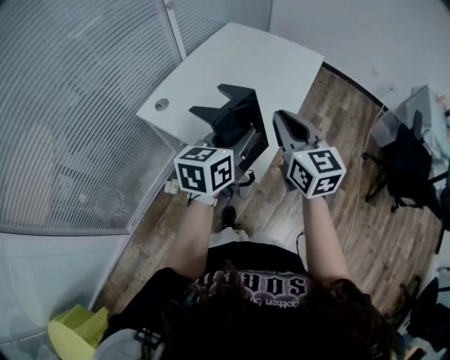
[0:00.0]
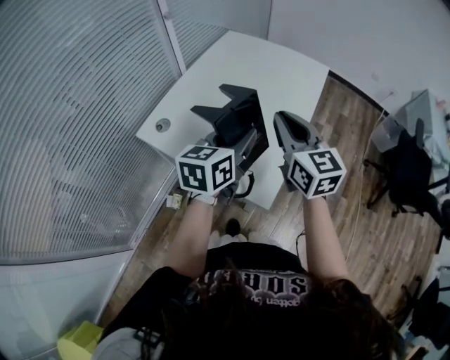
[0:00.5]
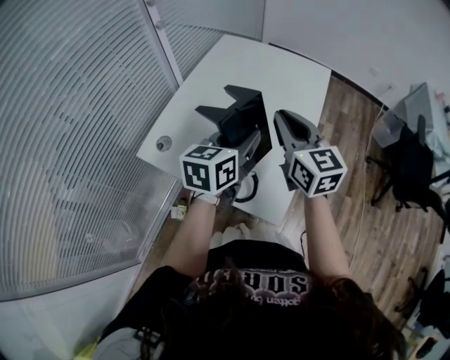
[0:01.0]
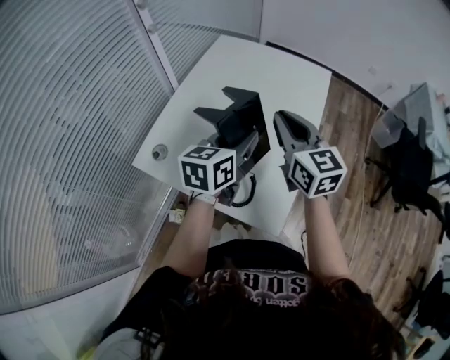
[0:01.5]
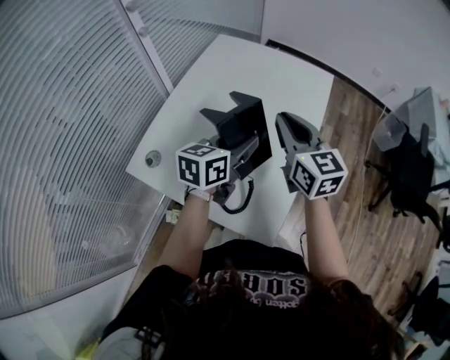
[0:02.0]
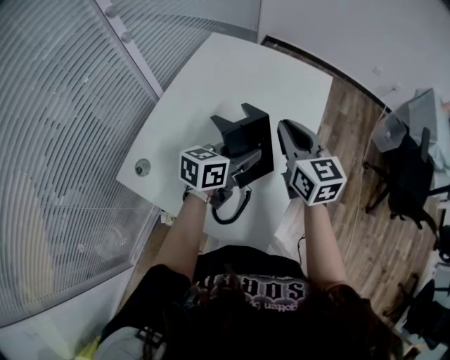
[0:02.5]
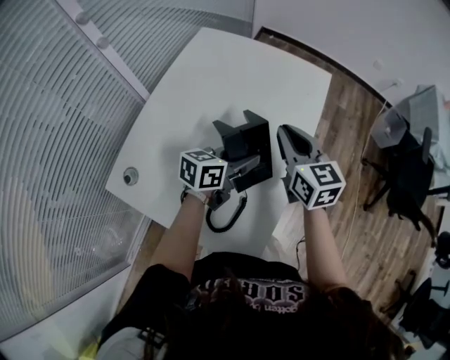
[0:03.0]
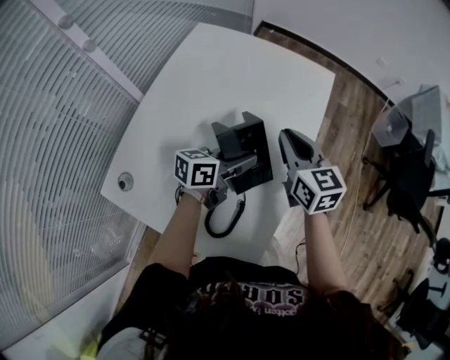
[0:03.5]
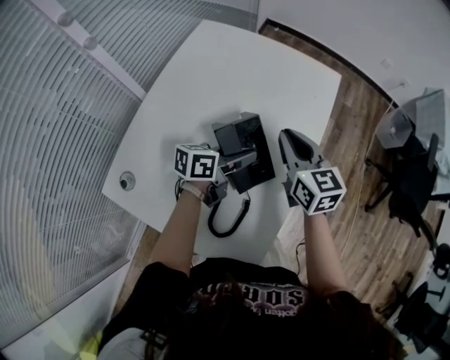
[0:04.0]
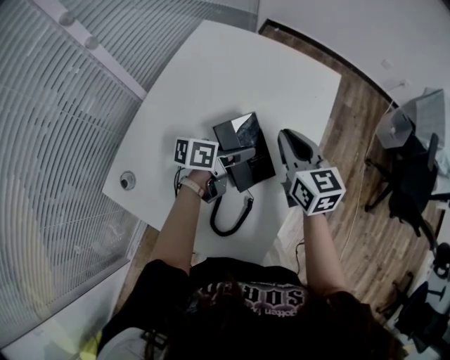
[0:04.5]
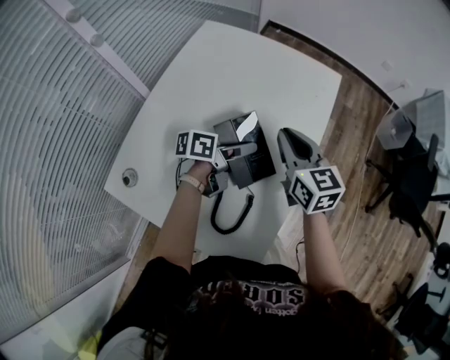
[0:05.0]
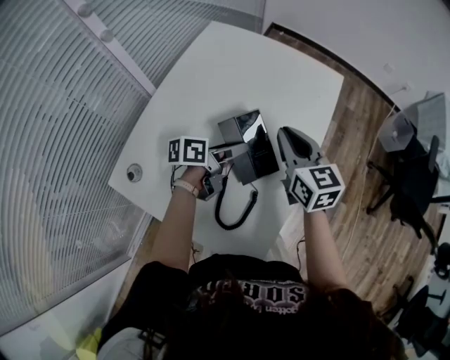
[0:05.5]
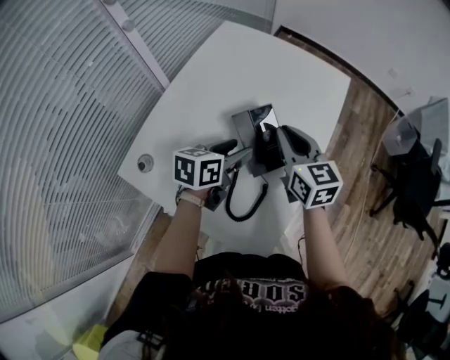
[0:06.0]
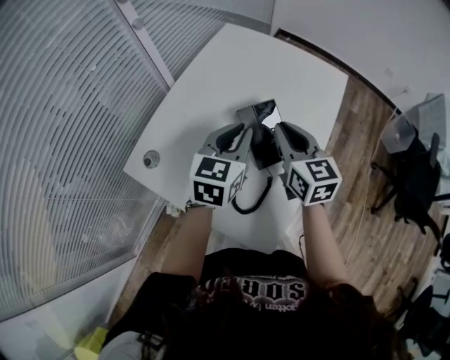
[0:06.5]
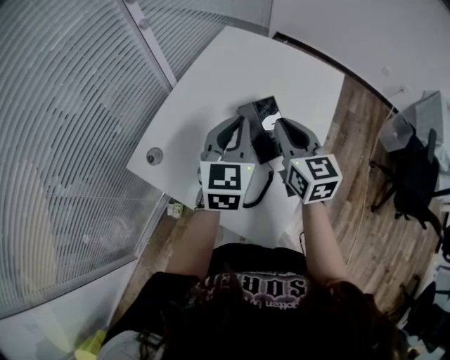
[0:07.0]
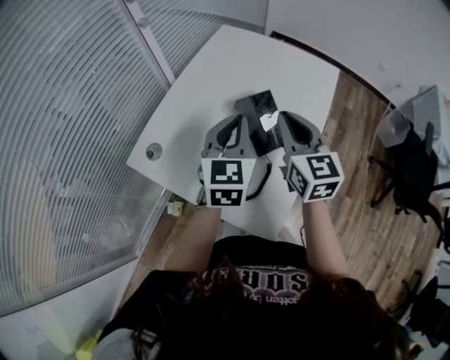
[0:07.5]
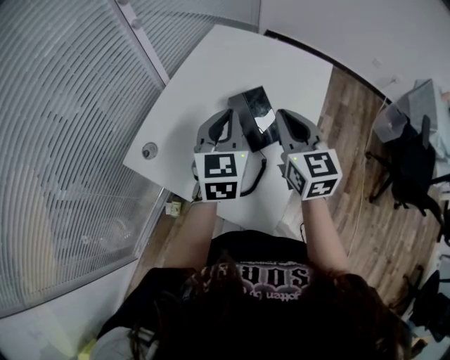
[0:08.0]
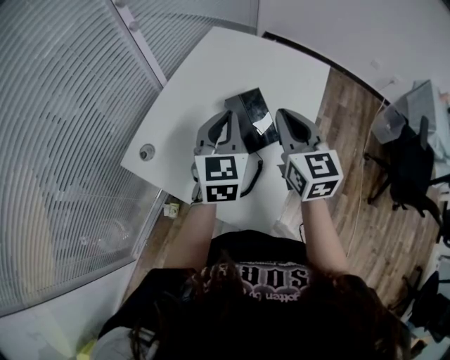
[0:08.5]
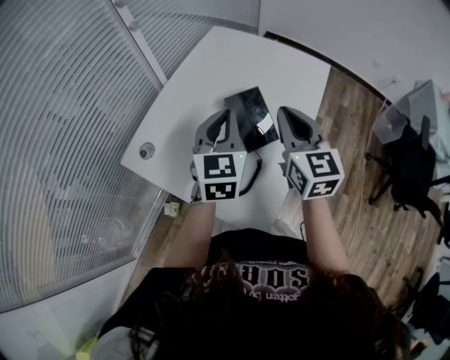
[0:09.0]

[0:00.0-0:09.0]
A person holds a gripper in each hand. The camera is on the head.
0.0 to 2.0 s: Both grippers move forward, about 25 cm.
2.0 to 4.5 s: Both grippers travel together downward and forward, roughly 15 cm. The left gripper changes its angle by about 40 degrees.
4.5 to 7.0 s: The left gripper goes roughly 20 cm upward, rotates approximately 70 degrees, and closes up, while the right gripper moves roughly 15 cm.
7.0 to 9.0 s: The right gripper shifts by approximately 5 cm.

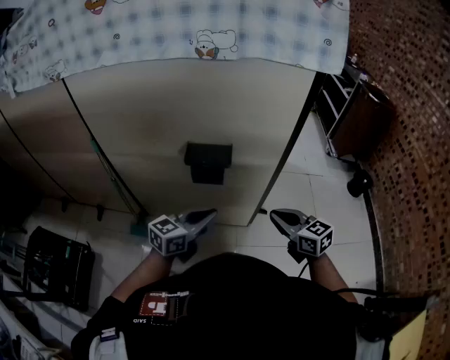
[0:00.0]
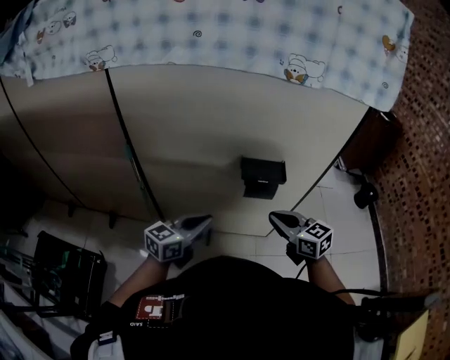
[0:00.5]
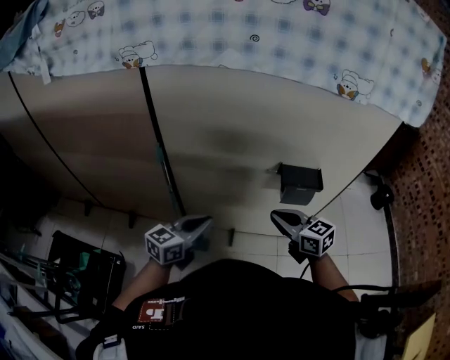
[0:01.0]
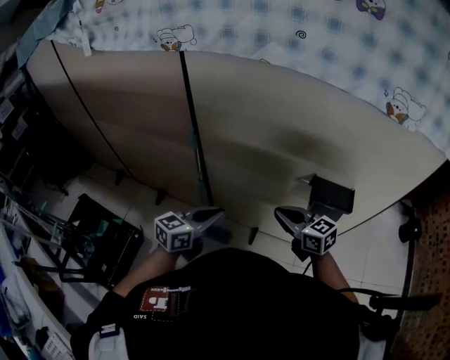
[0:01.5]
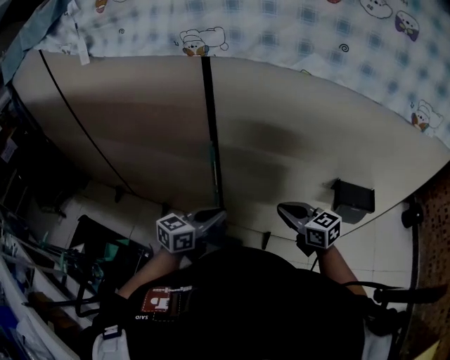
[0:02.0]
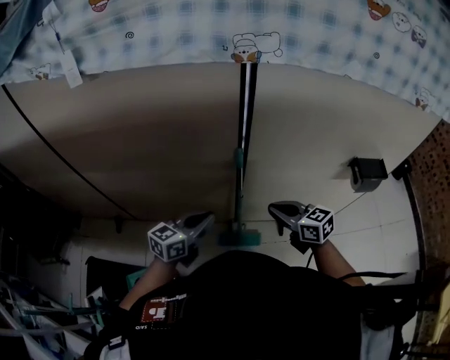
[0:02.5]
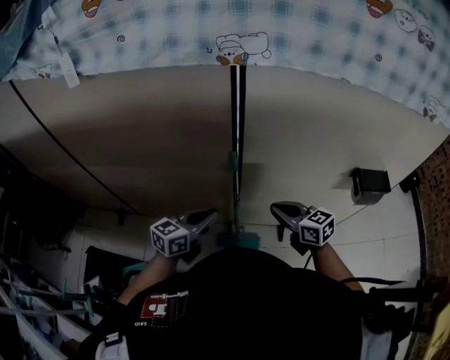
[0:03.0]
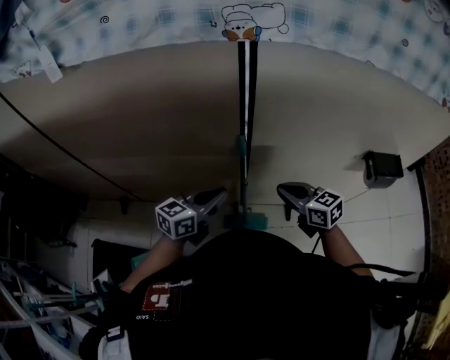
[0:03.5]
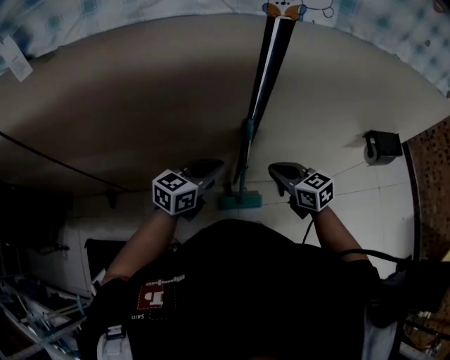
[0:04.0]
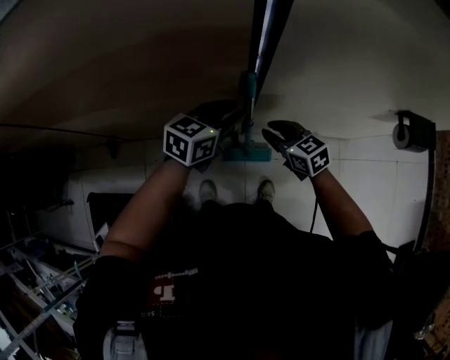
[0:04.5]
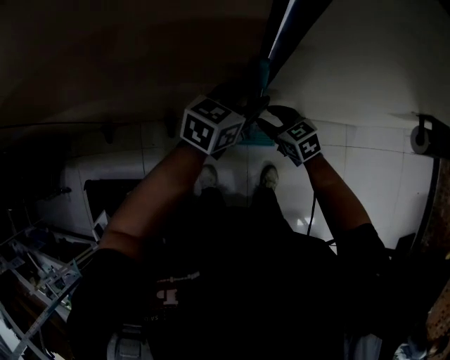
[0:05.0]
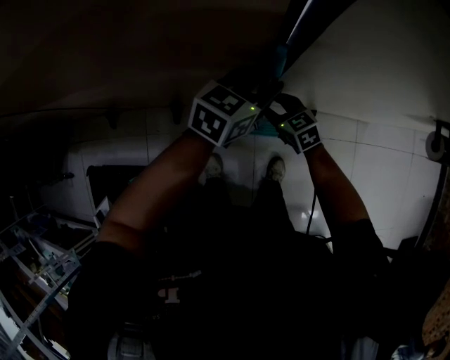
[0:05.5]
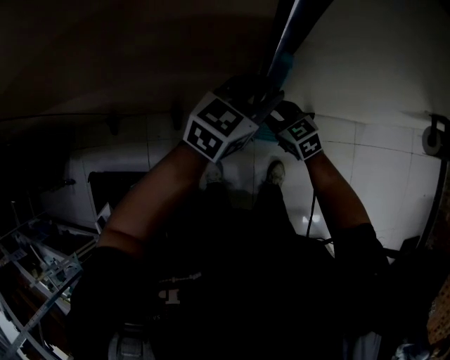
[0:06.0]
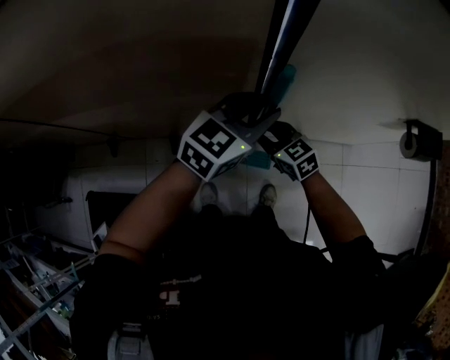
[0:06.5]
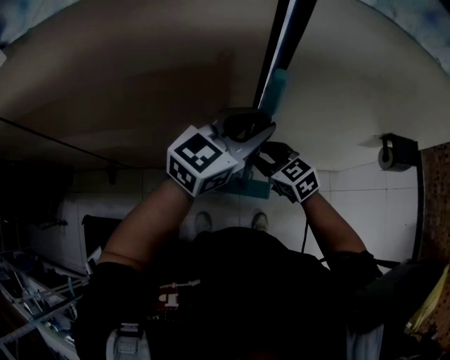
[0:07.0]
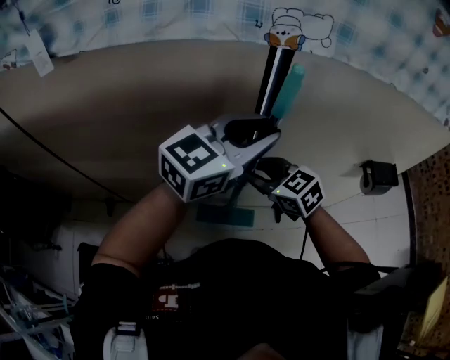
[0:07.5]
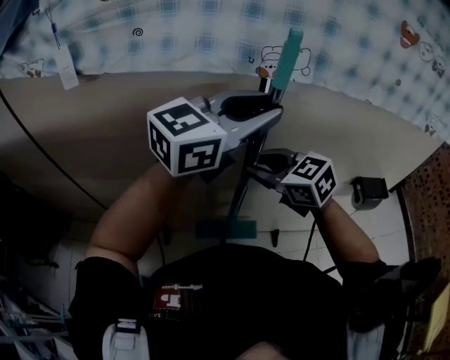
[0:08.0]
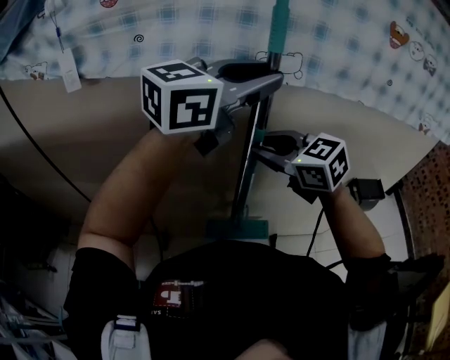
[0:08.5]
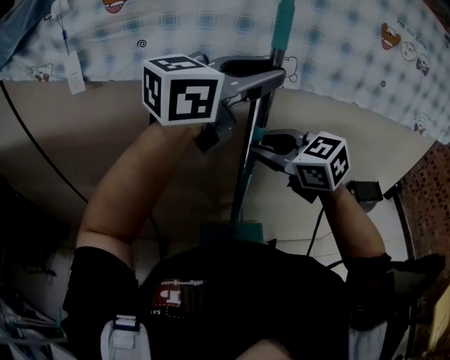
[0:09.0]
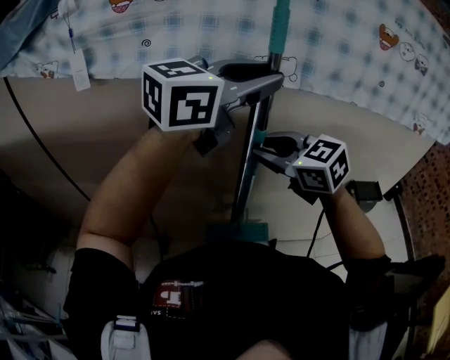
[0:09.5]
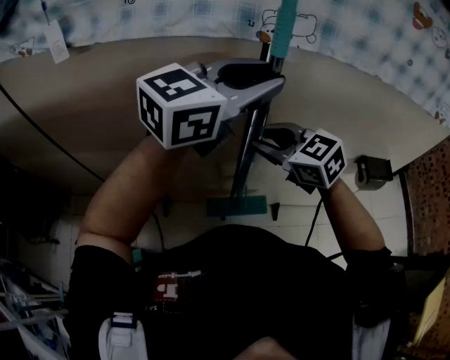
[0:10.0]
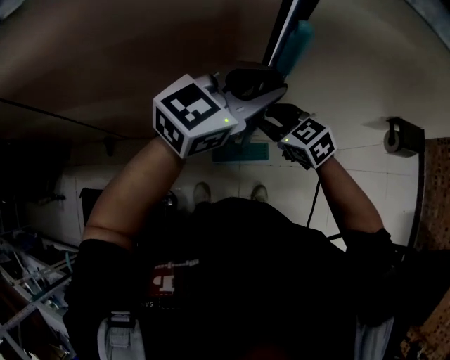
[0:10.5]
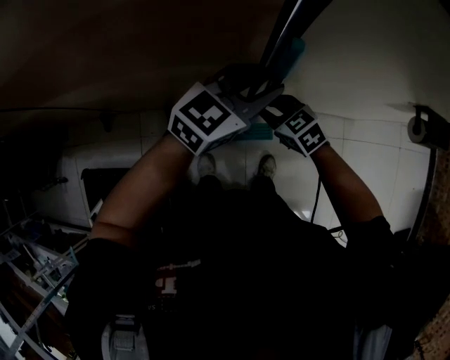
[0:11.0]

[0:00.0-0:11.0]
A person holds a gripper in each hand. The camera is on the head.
0.0 to 2.0 s: Both grippers are carried to the left, some 50 cm.
2.0 to 3.5 s: The right gripper goes some 15 cm to the left, while the left gripper heads to the left and forward, covering roughly 20 cm.
3.5 to 5.5 s: The left gripper goes about 25 cm forward, downward and to the right, and opens. The right gripper shifts roughly 30 cm downward, and opens its fingers.
5.5 to 7.5 s: The two grippers go approximately 35 cm upward. The left gripper turns by some 30 degrees.
7.5 to 9.0 s: Both grippers move upward, approximately 20 cm.
9.0 to 11.0 s: The two grippers go roughly 50 cm downward. The left gripper rotates approximately 20 degrees. Meanwhile the right gripper changes its angle by approximately 30 degrees.

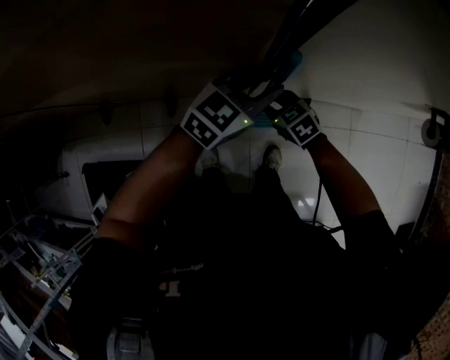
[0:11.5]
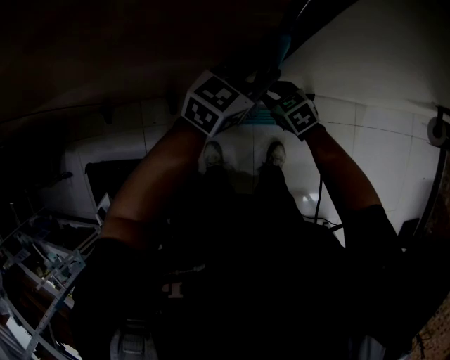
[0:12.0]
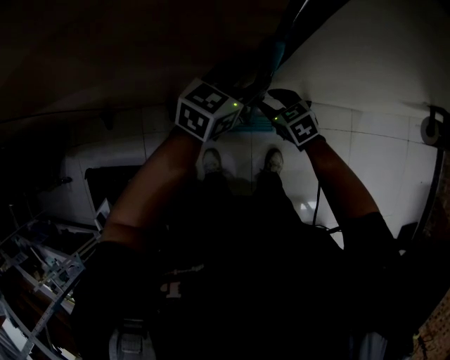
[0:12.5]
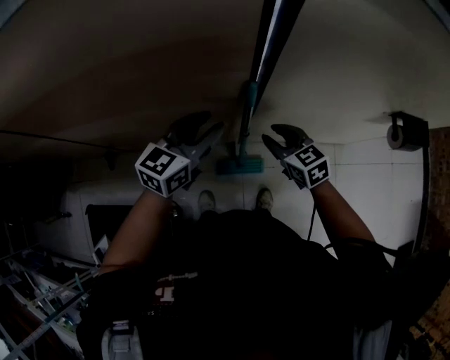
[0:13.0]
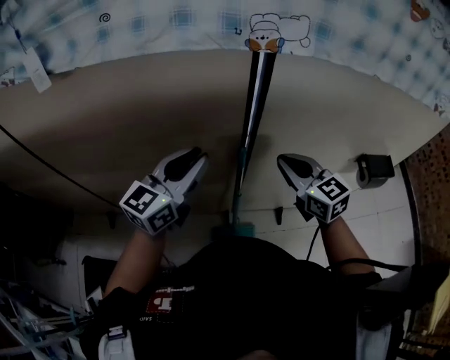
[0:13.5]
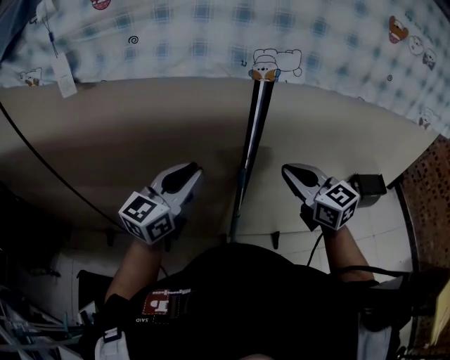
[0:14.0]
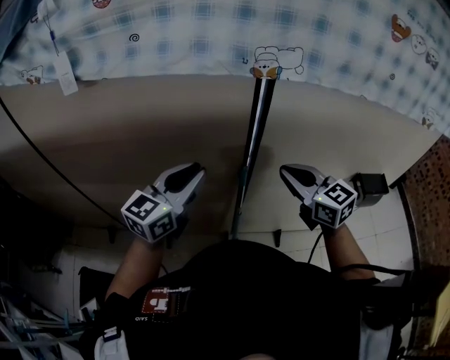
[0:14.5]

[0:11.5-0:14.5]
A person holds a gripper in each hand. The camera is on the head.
11.5 to 13.0 s: The left gripper is displaced to the left and upward by about 15 cm, and turns by some 20 degrees, while the right gripper is displaced upward by some 15 cm, and swivels roughly 20 degrees.
13.0 to 14.5 s: The grippers both shift upward by about 25 cm. The right gripper turns by about 20 degrees, and closes.

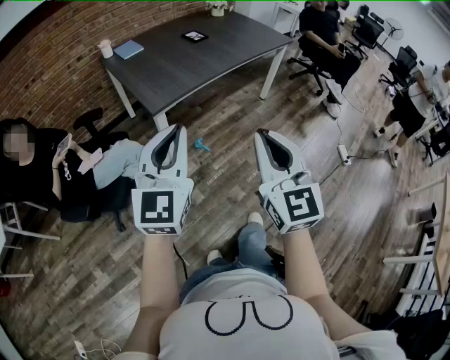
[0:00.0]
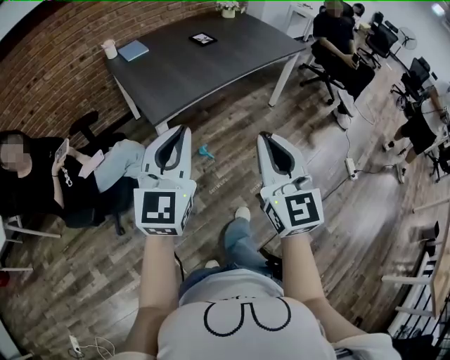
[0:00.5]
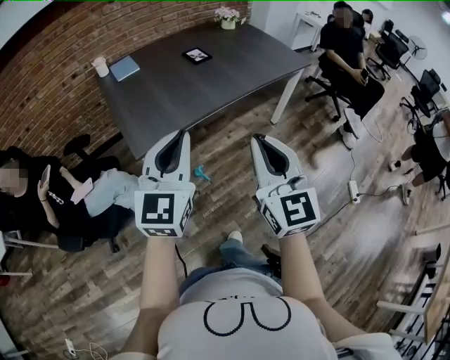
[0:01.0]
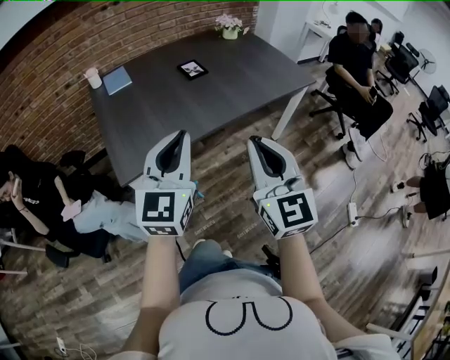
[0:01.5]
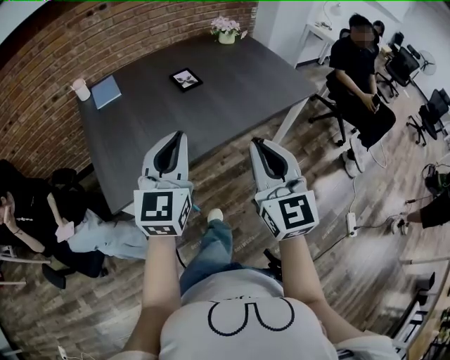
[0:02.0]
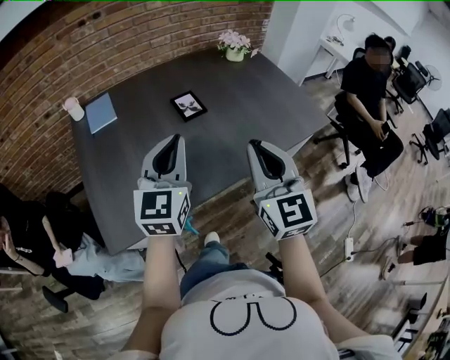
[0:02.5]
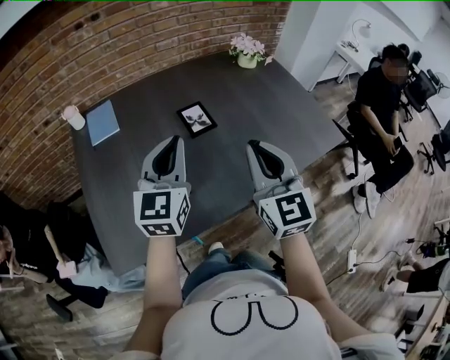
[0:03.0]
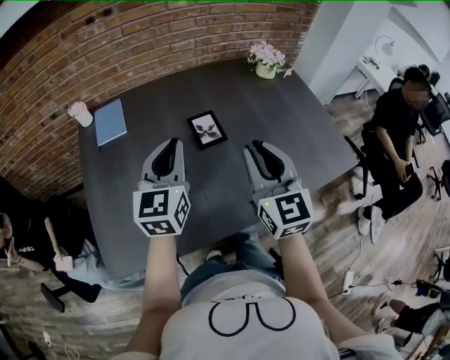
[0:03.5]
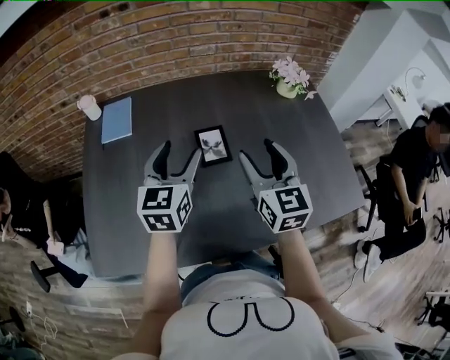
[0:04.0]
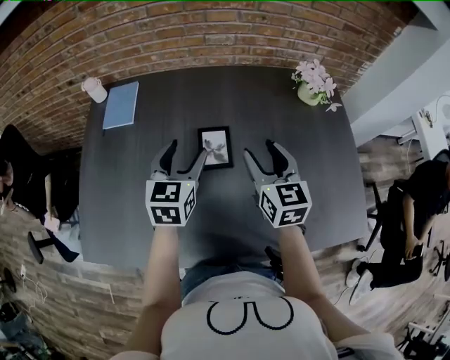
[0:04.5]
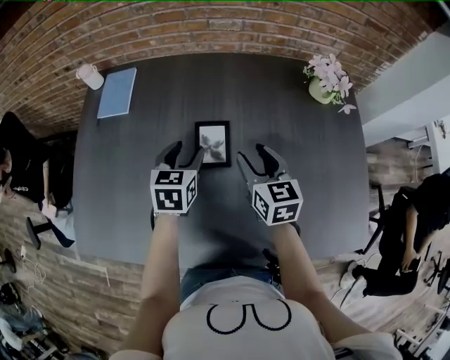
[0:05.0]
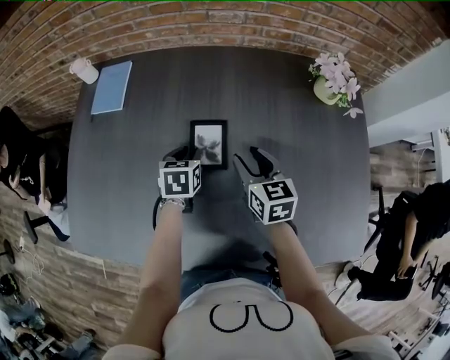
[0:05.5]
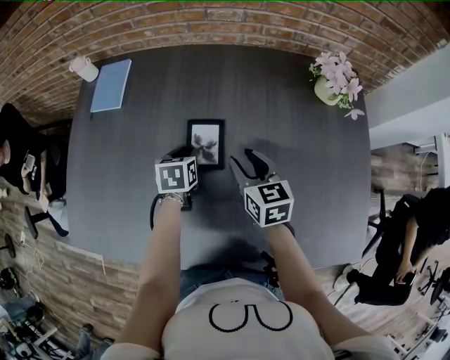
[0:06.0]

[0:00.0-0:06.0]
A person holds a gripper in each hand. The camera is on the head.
0.0 to 2.0 s: The two grippers travel together, forward, about 50 cm.
2.0 to 4.0 s: The pair of grippers is taken forward, about 50 cm. The left gripper turns by approximately 30 degrees, and opens its fingers; the right gripper swivels roughly 20 degrees, and opens up.
4.0 to 6.0 s: Both grippers travel together downward and forward, some 25 cm. The left gripper points its fingers some 40 degrees further downward, and closes up. The right gripper rotates roughly 30 degrees.
